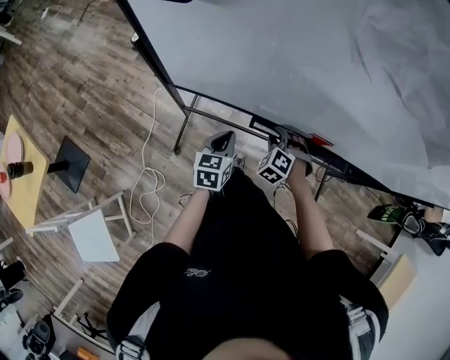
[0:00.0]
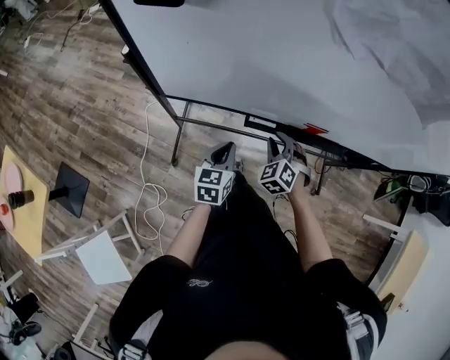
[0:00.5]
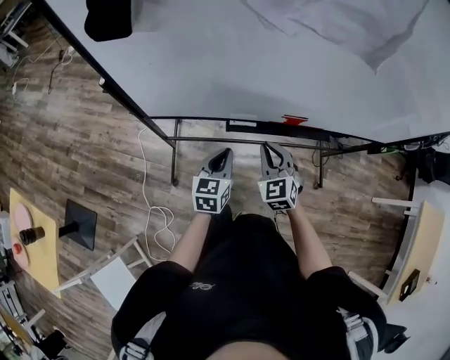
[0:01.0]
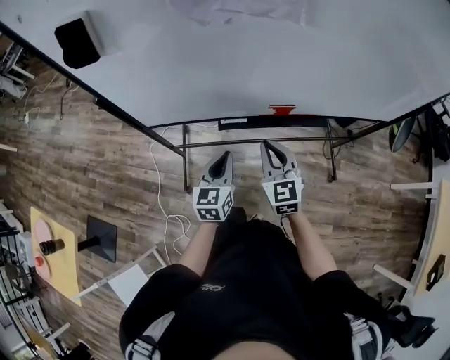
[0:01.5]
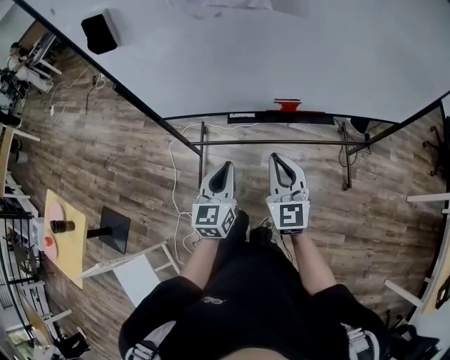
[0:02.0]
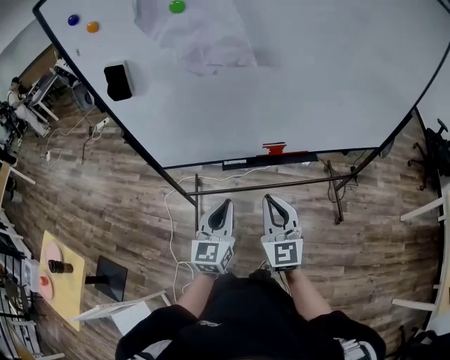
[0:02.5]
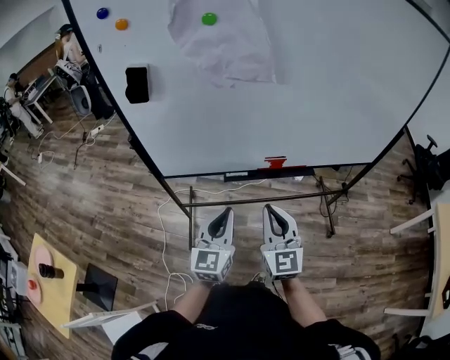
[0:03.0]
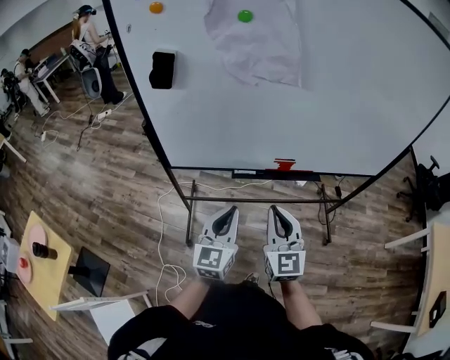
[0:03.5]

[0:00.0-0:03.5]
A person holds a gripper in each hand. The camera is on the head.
0:00.0 to 0:02.0: The two grippers go about 30 cm upward, backward and to the right. The right gripper tips its fingers upward by approximately 50 degrees, and closes its fingers, while the left gripper turns by some 20 degrees.
0:02.0 to 0:03.5: The right gripper heads upward, backward and to the left, covering some 10 cm. Meanwhile the left gripper goes about 10 cm upward.

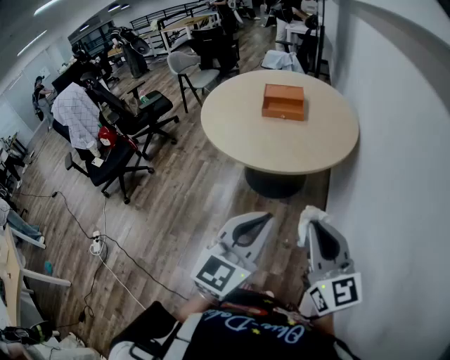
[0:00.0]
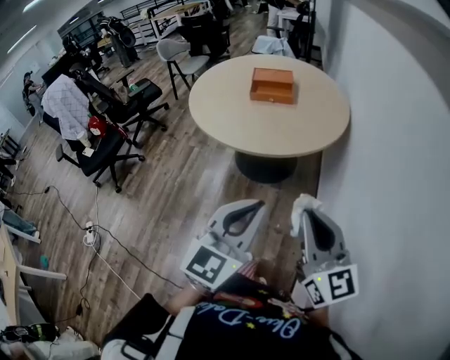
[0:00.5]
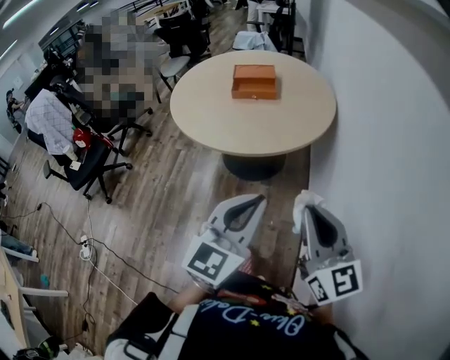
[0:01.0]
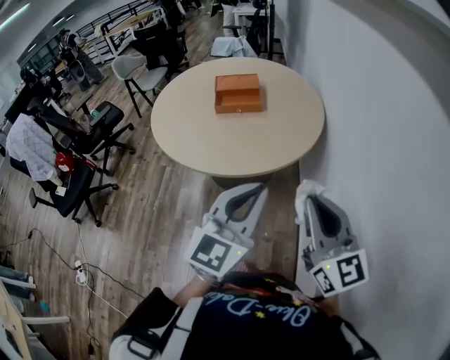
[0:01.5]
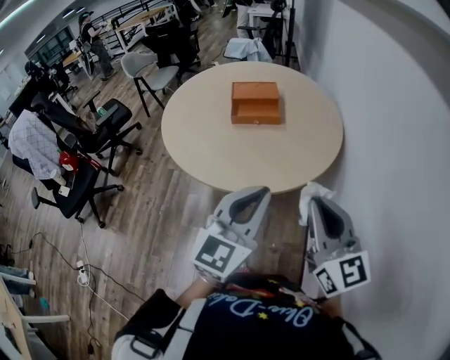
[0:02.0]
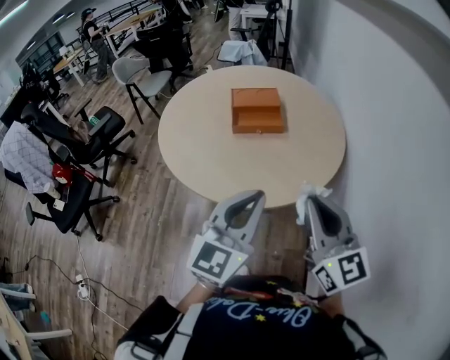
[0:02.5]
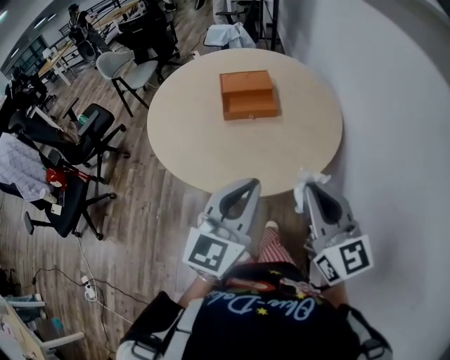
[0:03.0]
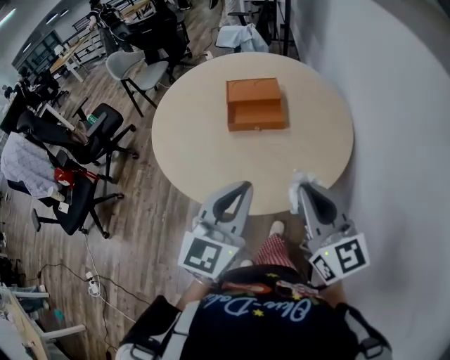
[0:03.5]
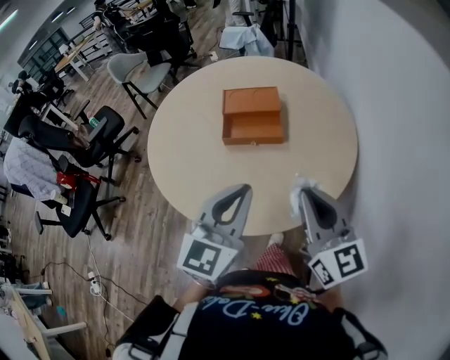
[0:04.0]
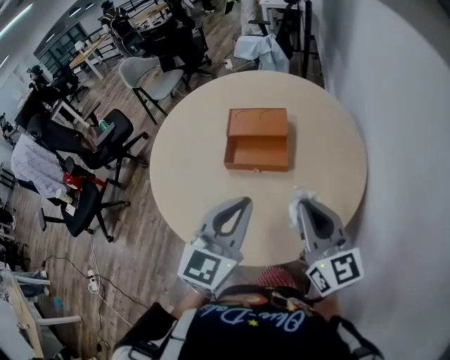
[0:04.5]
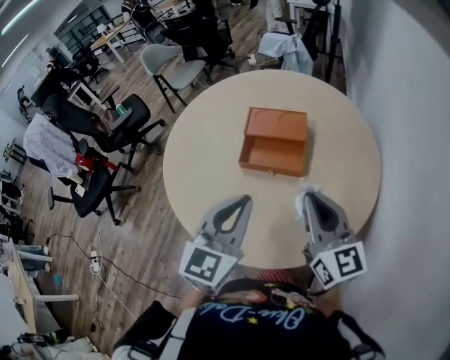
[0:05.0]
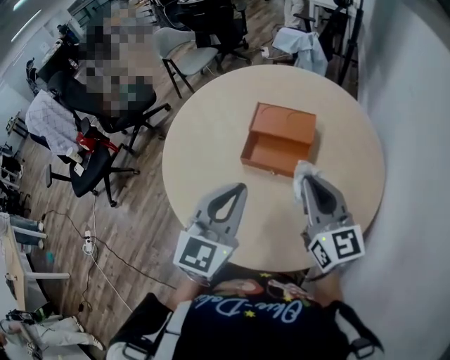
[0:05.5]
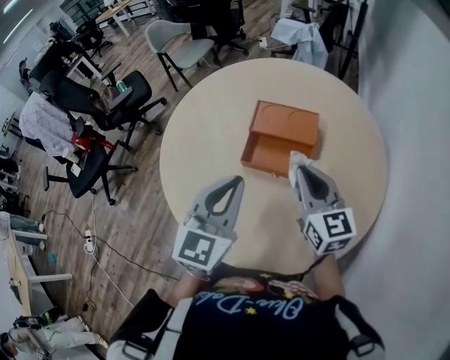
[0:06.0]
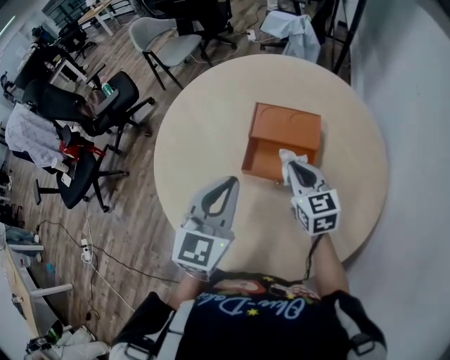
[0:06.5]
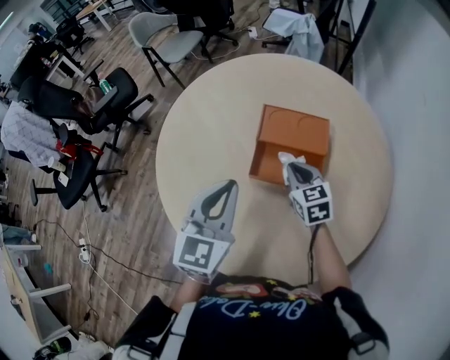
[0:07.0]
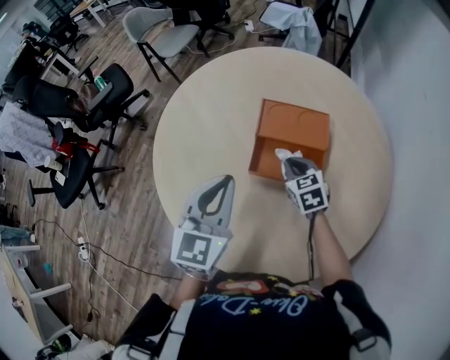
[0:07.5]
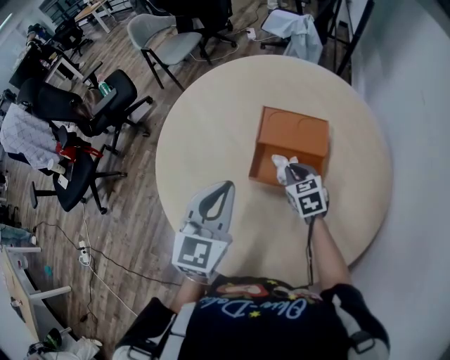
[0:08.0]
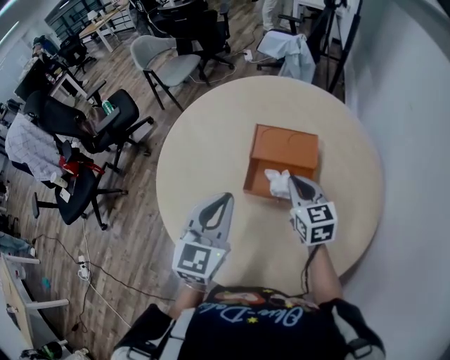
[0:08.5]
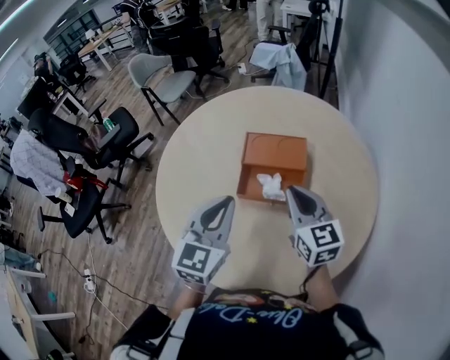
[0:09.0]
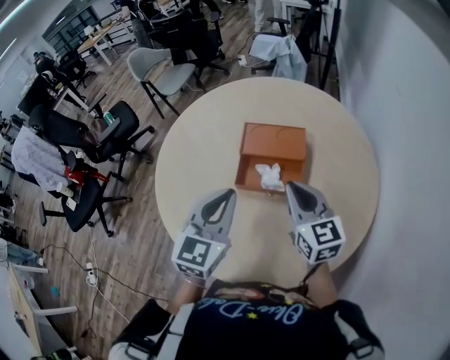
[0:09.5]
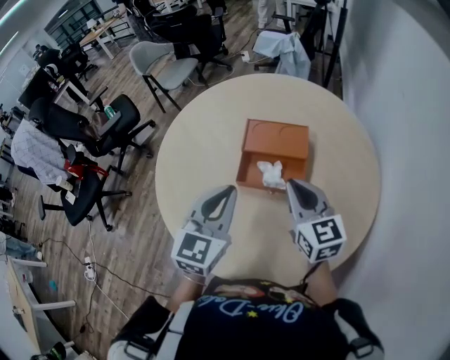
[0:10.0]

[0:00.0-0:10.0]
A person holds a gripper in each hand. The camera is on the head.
0:00.0 to 0:02.0: The grippers both shift forward by some 20 cm.
0:02.0 to 0:04.0: Both grippers move forward, about 20 cm.
0:04.0 to 0:06.0: The grippers both shift forward by about 20 cm.
0:06.0 to 0:08.0: The right gripper goes approximately 20 cm downward and forward, and angles its fingers downward, by approximately 40 degrees; the left gripper goes some 10 cm to the left and forward.
0:08.0 to 0:10.0: The left gripper goes roughly 5 cm to the right; the right gripper heads upward and backward, covering approximately 20 cm, and tilts its fingers about 30 degrees upward.

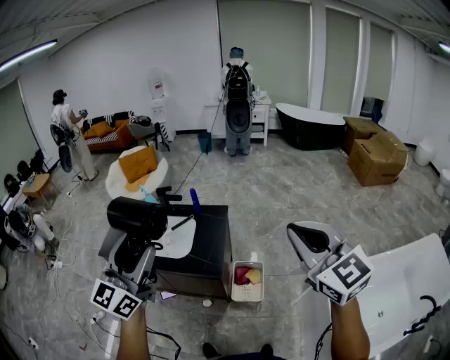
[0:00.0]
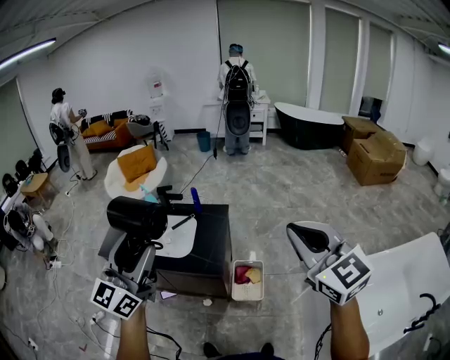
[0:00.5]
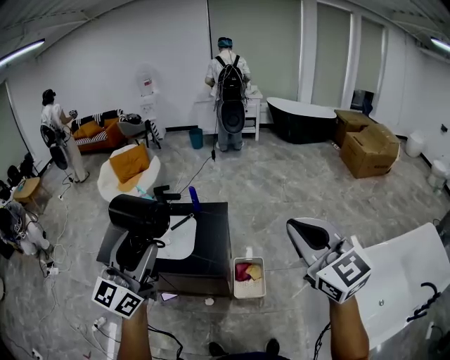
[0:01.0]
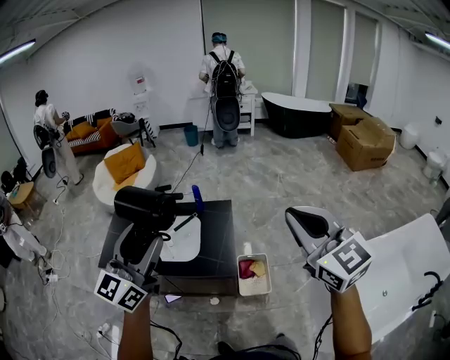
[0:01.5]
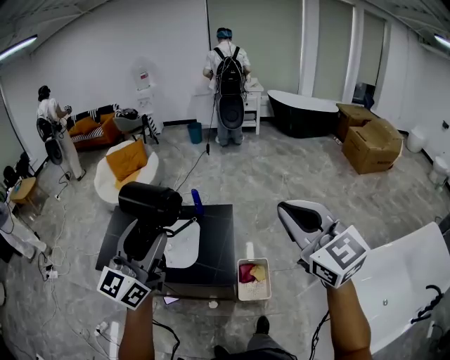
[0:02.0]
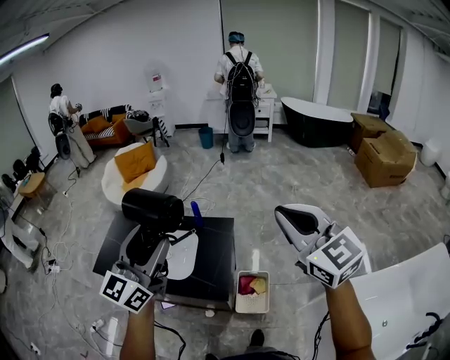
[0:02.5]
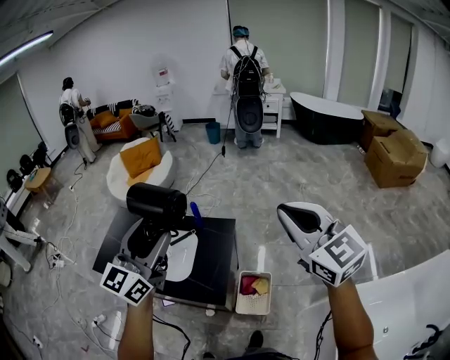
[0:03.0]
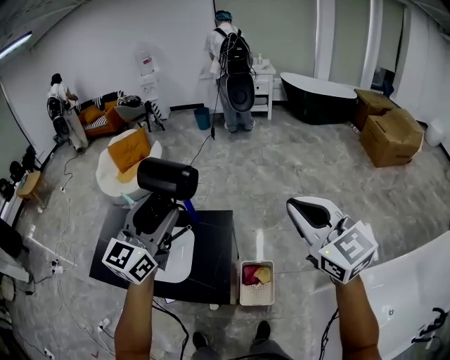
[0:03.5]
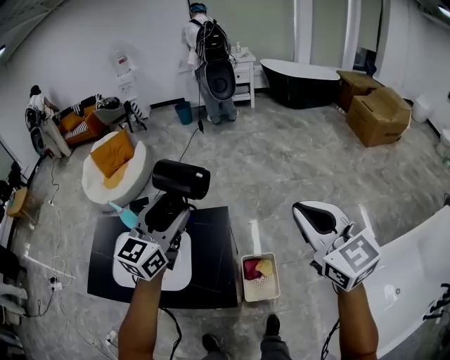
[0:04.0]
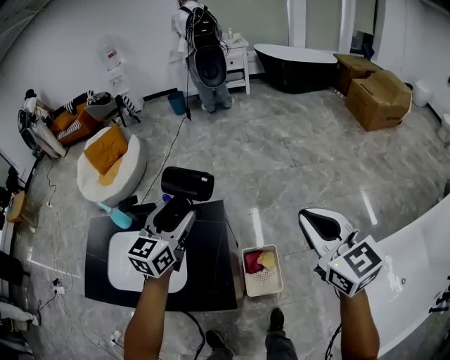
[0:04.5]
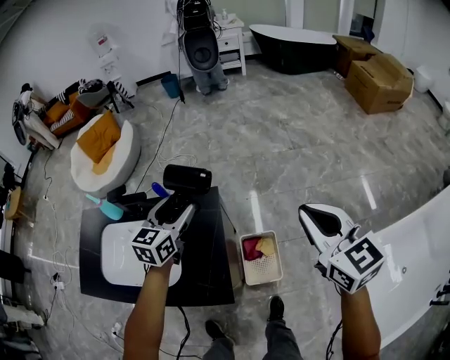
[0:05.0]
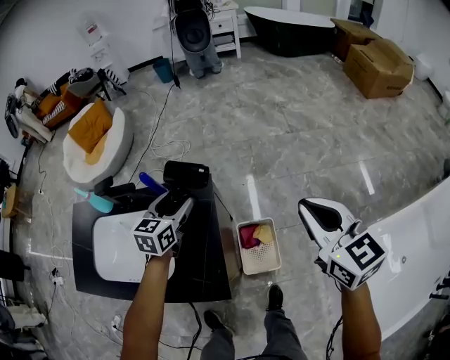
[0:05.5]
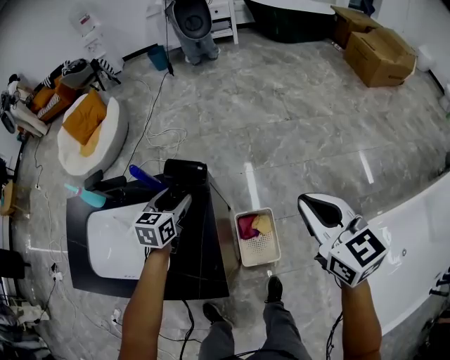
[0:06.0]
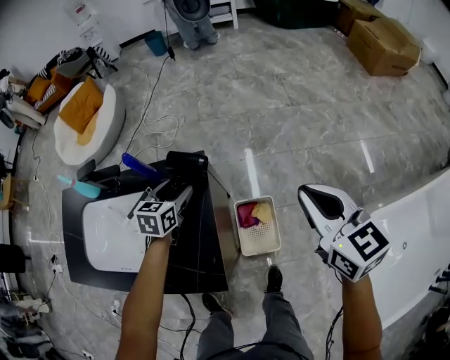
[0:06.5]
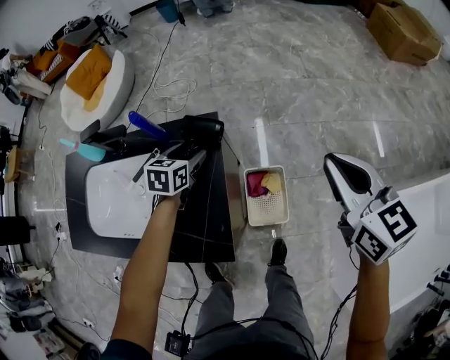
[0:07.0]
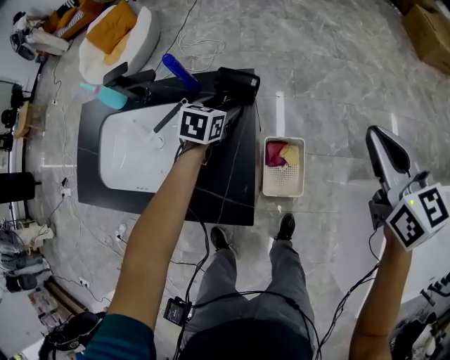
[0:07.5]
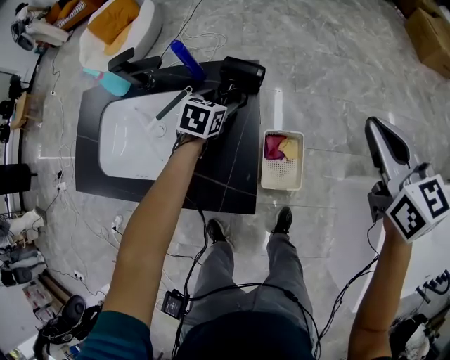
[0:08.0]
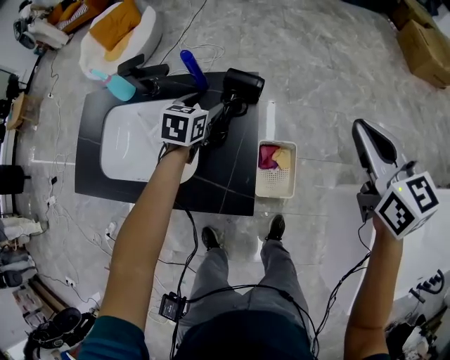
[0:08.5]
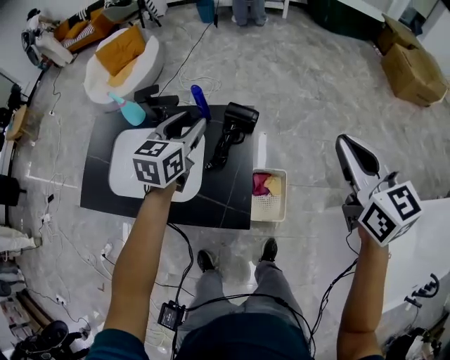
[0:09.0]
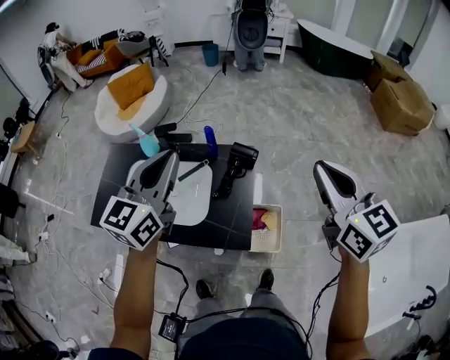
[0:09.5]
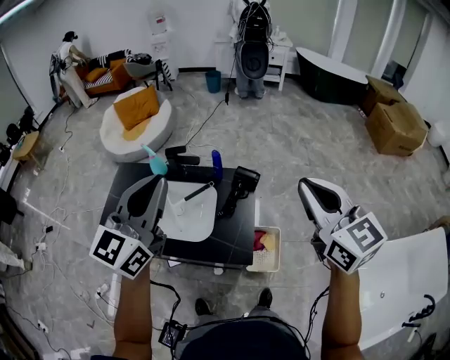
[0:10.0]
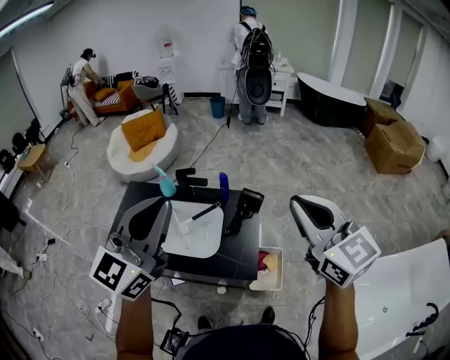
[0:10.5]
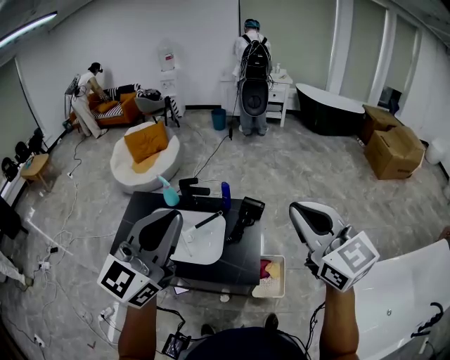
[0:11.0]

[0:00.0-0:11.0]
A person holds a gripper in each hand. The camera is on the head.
0:00.0 to 0:02.0: The right gripper shifts roughly 15 cm forward and to the left. The left gripper is displaced forward by approximately 15 cm.
0:02.0 to 0:03.5: The two grippers go approximately 25 cm forward and to the right.
0:03.5 to 0:05.5: The right gripper goes roughly 25 cm downward, and turns by about 20 degrees. The left gripper is displaced downward and forward by some 40 cm, and angles its fingers downward, by about 30 degrees.
0:05.5 to 0:07.5: The left gripper travels downward by about 15 cm, and swivels approximately 20 degrees, while the right gripper moves downward, approximately 10 cm.
0:07.5 to 0:09.0: The left gripper is displaced upward by approximately 25 cm, and swivels roughly 30 degrees. Meanwhile the right gripper shifts roughly 15 cm upward and to the left.
0:09.0 to 0:11.0: The right gripper heads upward, to the left and backward, covering some 30 cm, and swivels some 20 degrees. The left gripper moves upward and backward, about 50 cm, tilts its fingers roughly 30 degrees upward, and closes up.

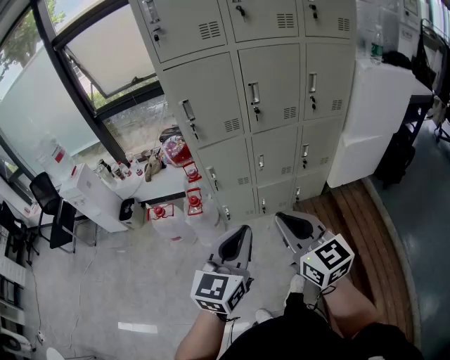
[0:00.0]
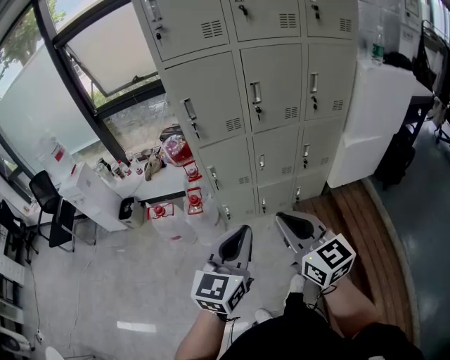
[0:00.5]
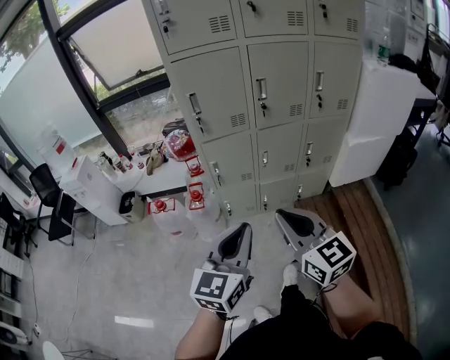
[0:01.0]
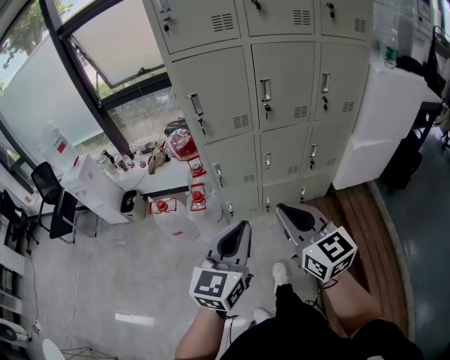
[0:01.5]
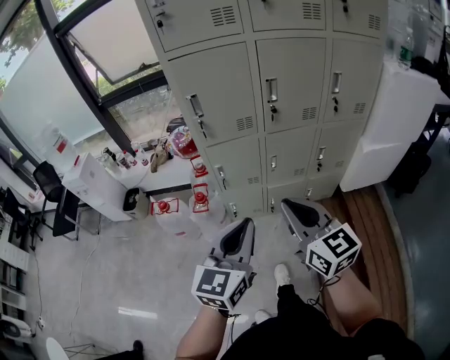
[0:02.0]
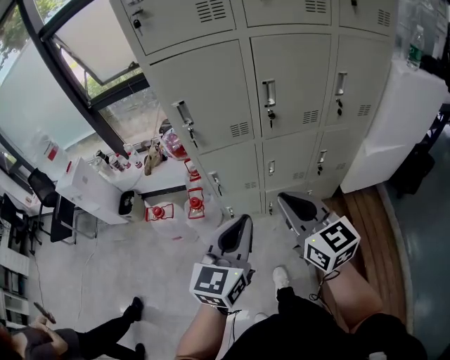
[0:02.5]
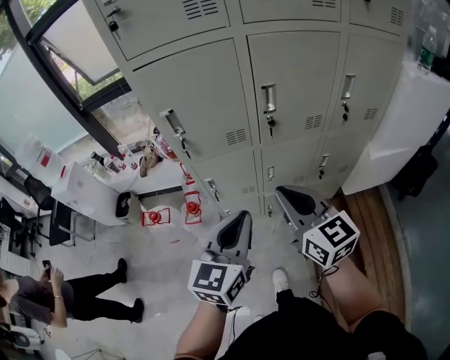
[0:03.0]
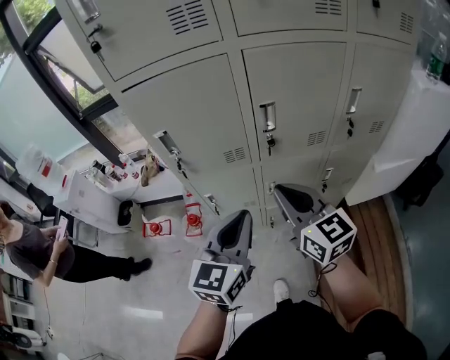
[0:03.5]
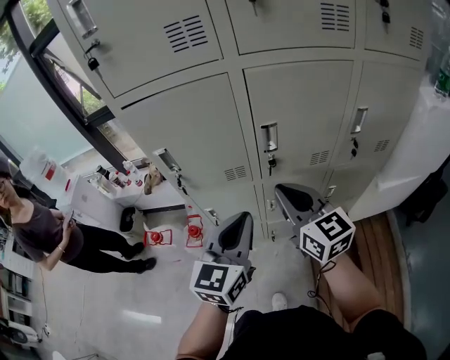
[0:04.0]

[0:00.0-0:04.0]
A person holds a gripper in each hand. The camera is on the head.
0:00.0 to 0:02.0: The grippers both shift forward by roughly 10 cm.
0:02.0 to 0:04.0: The grippers both shift forward by roughly 25 cm.
